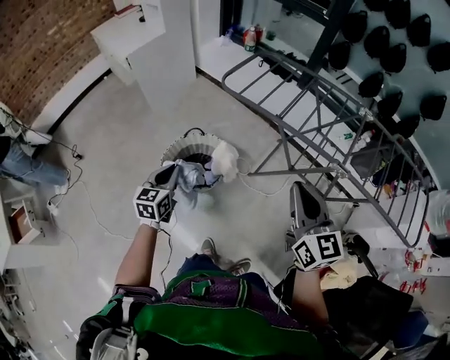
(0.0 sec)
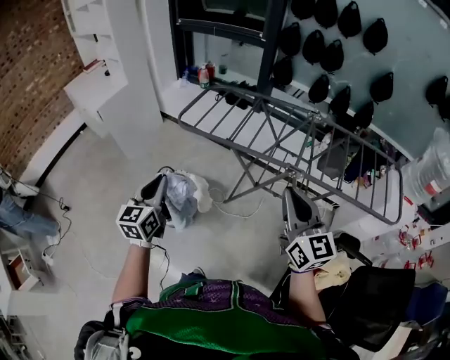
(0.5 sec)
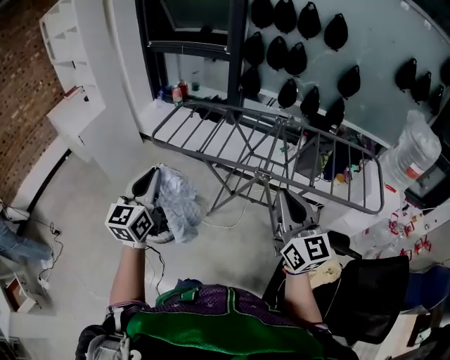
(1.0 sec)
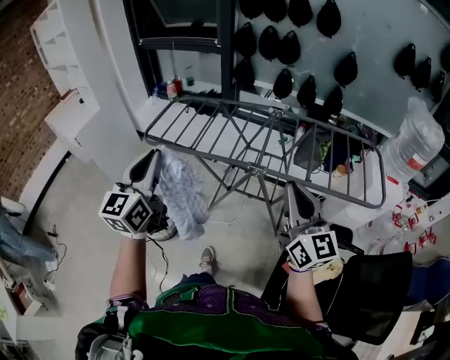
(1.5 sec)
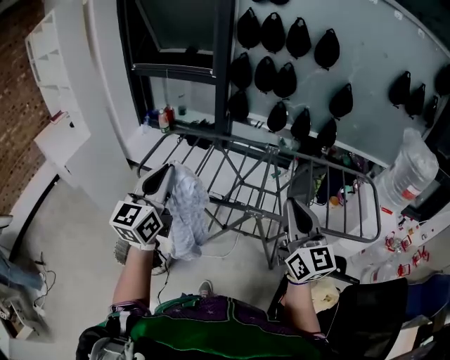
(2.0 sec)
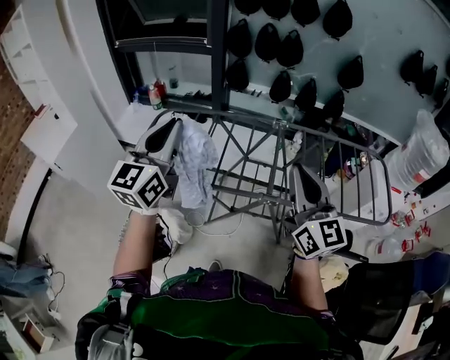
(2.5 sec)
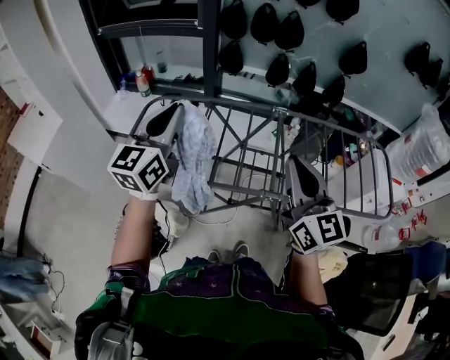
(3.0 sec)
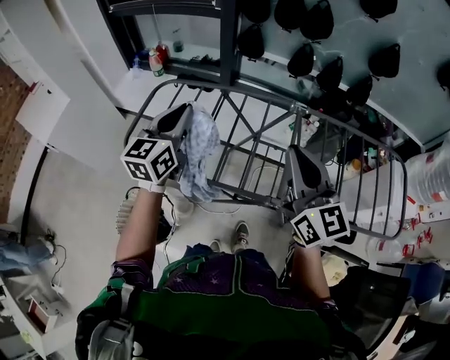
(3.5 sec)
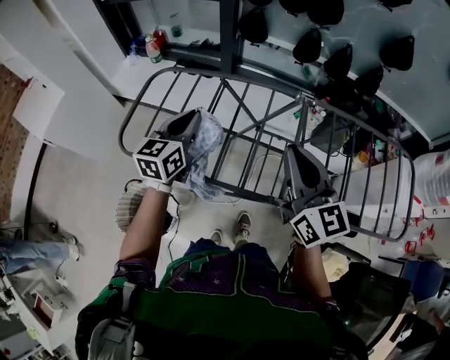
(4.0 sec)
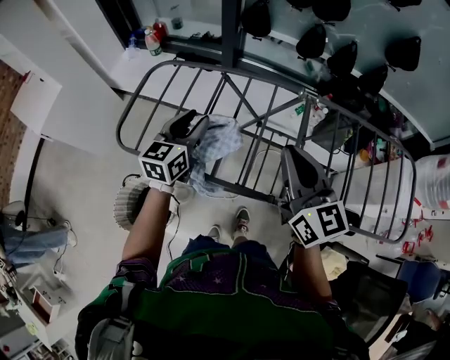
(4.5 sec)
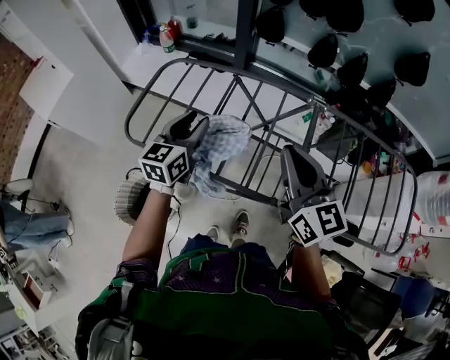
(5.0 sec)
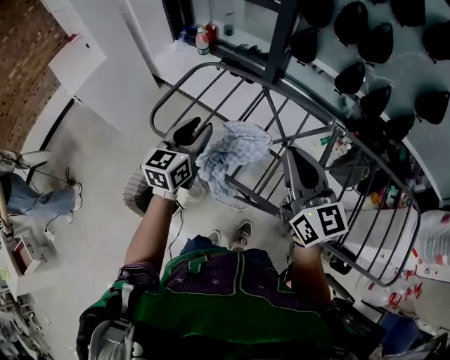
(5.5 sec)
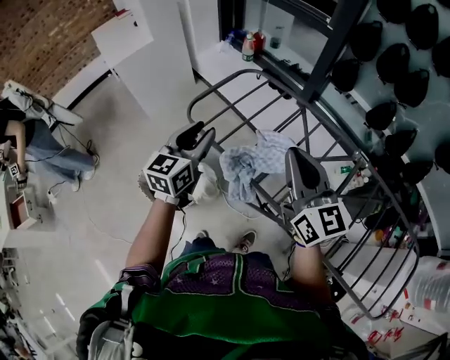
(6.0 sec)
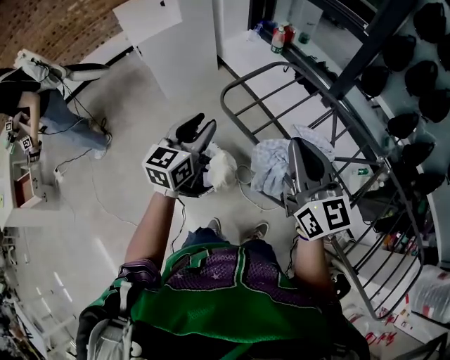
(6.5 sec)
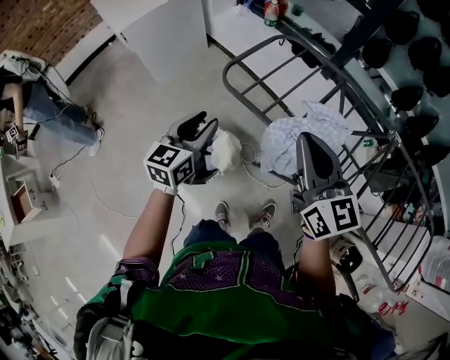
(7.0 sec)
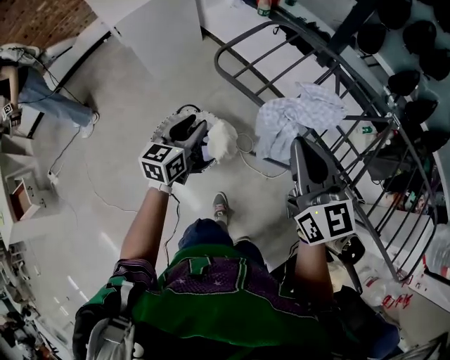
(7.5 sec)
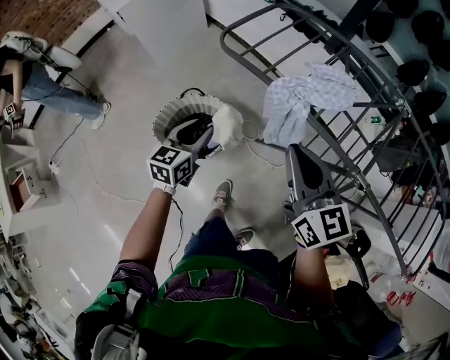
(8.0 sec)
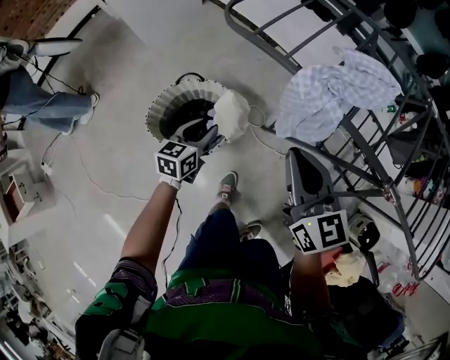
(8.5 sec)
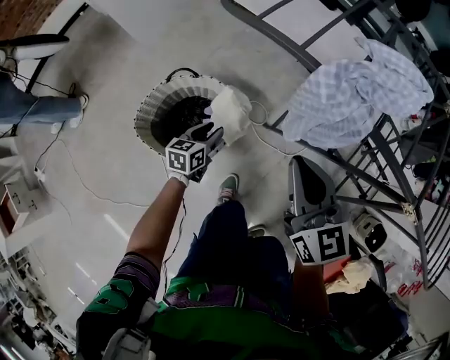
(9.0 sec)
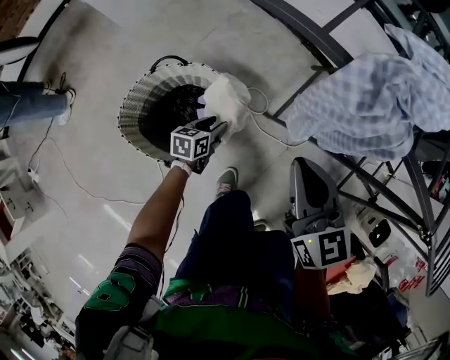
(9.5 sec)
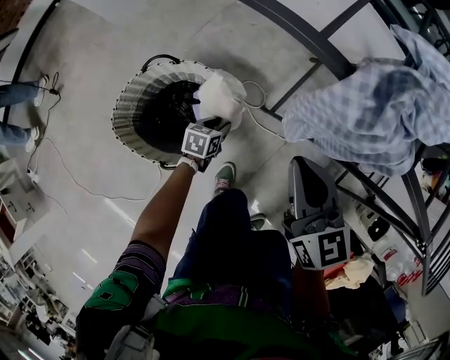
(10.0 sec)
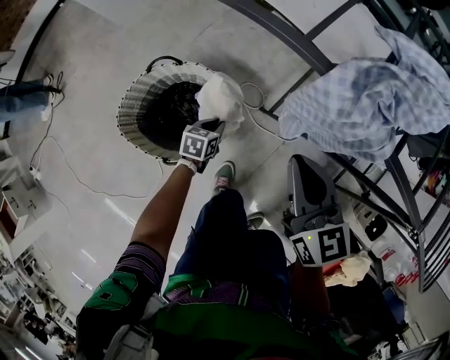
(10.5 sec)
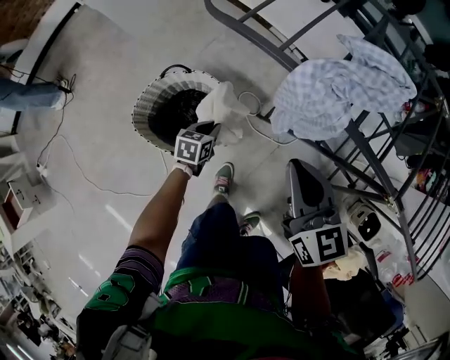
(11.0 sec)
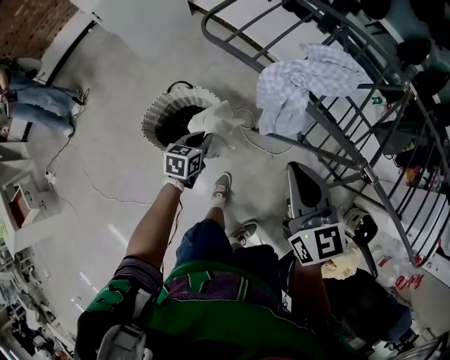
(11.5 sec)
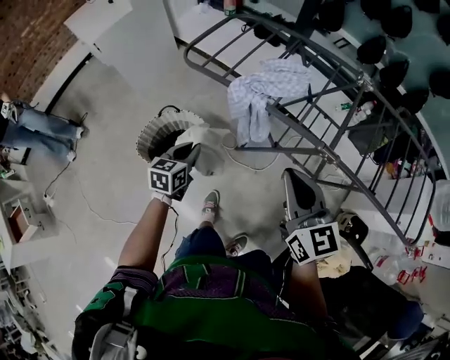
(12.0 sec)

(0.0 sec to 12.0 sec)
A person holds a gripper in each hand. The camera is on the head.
0.0 sec - 2.0 sec: The left gripper is displaced upward and to the right by approximately 50 cm, and angles its fingers upward, by some 30 degrees; the right gripper travels to the right and upward by about 30 cm, and changes its angle by some 30 degrees.
2.0 sec - 4.0 sec: The left gripper goes approximately 40 cm forward and downward, and changes its angle by some 20 degrees, while the right gripper is displaced forward by about 25 cm.
4.0 sec - 6.0 sec: The right gripper ends up some 15 cm from where it was, and turns by approximately 30 degrees, while the left gripper changes place by about 20 cm, swivels about 30 degrees, and opens its fingers.
6.0 sec - 8.0 sec: The right gripper travels to the left, downward and backward by about 25 cm; the left gripper moves downward, to the left and backward, roughly 30 cm.
8.0 sec - 10.0 sec: The left gripper shifts roughly 50 cm downward, and changes its angle by roughly 40 degrees. Meanwhile the right gripper shifts roughly 30 cm downward.
10.0 sec - 12.0 sec: The right gripper shifts approximately 40 cm upward, backward and to the right, while the left gripper goes approximately 50 cm upward, rotates some 30 degrees, and closes its fingers.

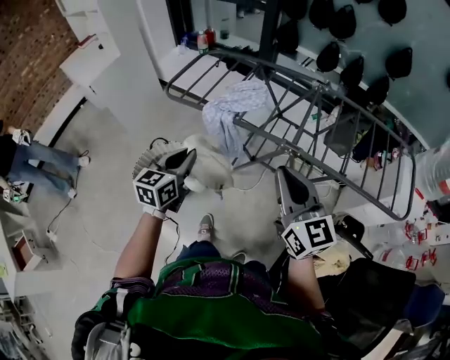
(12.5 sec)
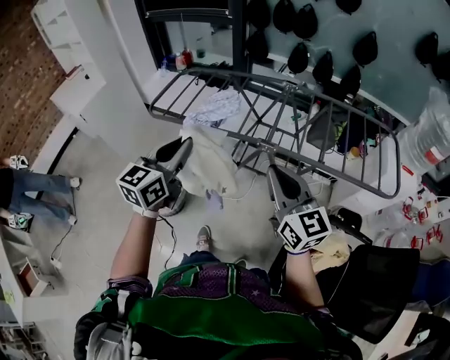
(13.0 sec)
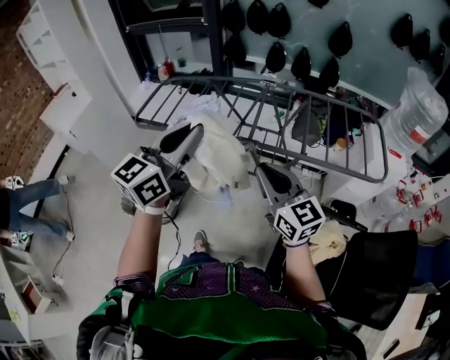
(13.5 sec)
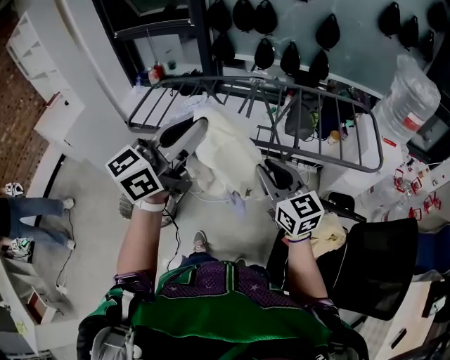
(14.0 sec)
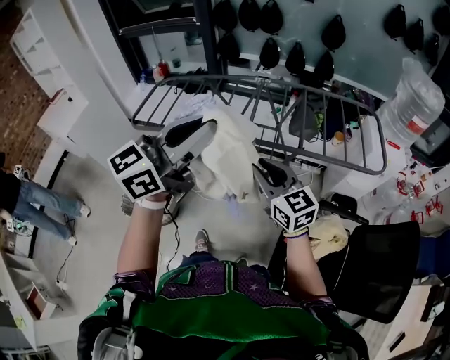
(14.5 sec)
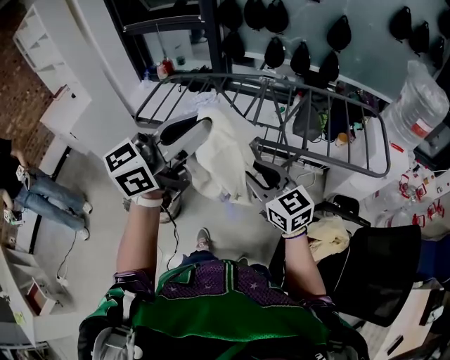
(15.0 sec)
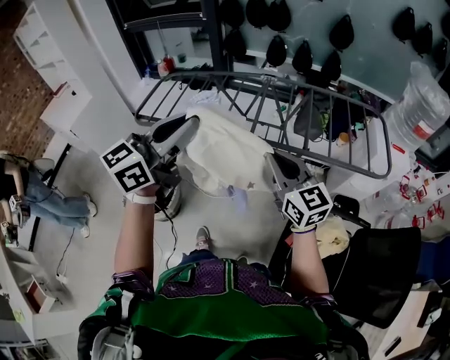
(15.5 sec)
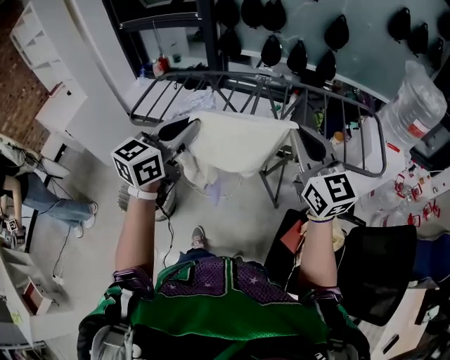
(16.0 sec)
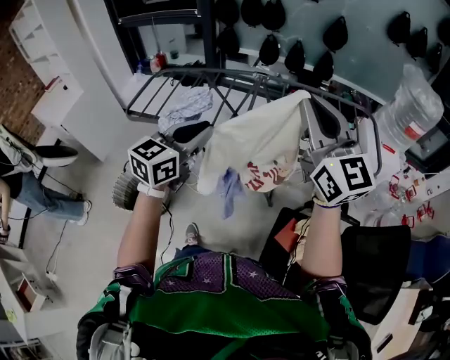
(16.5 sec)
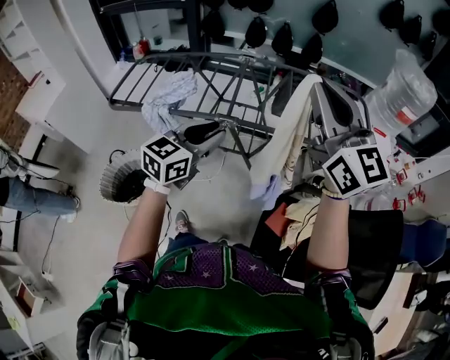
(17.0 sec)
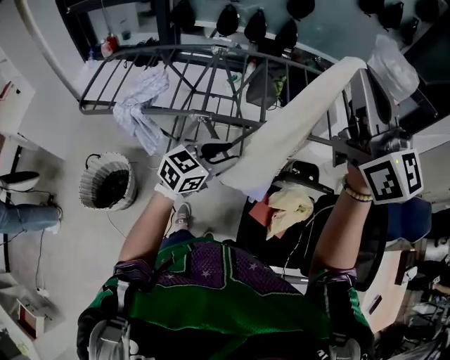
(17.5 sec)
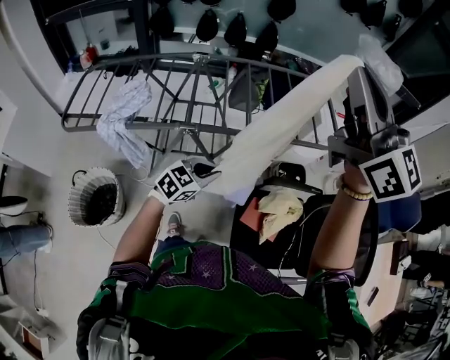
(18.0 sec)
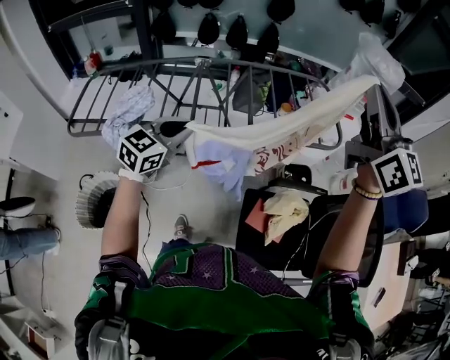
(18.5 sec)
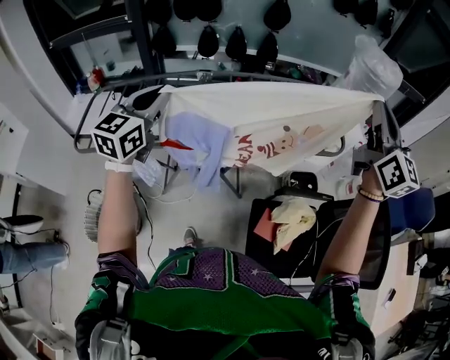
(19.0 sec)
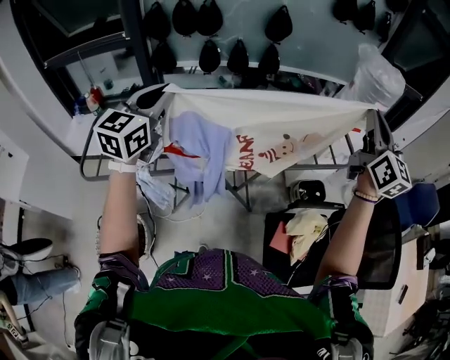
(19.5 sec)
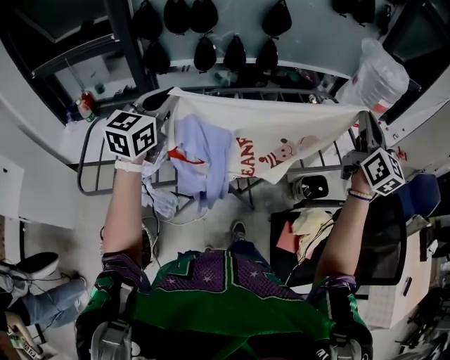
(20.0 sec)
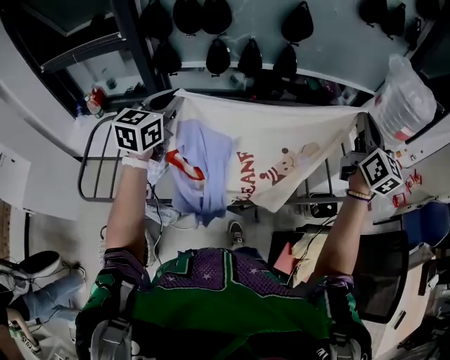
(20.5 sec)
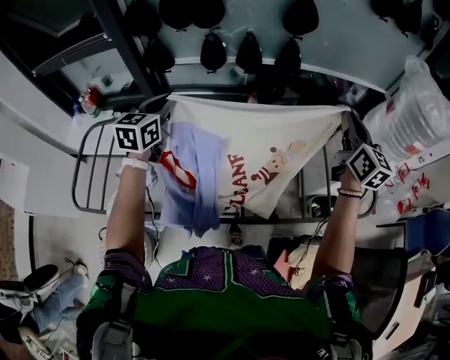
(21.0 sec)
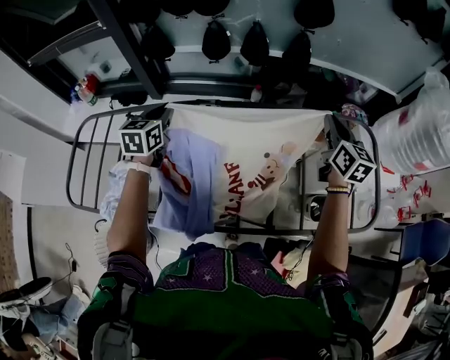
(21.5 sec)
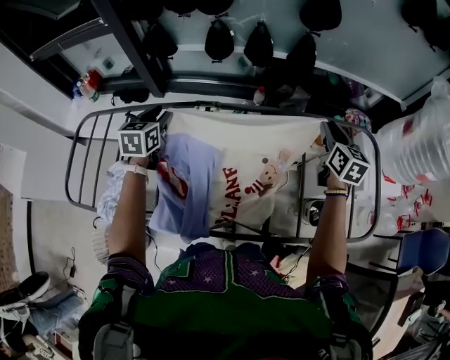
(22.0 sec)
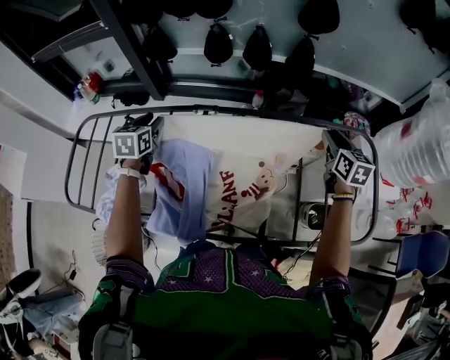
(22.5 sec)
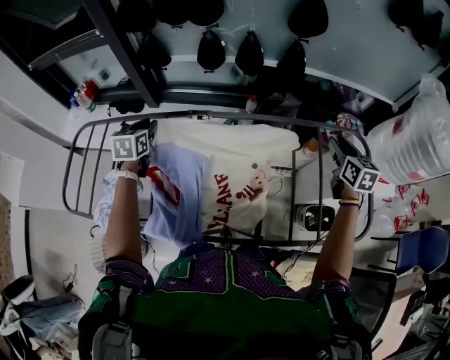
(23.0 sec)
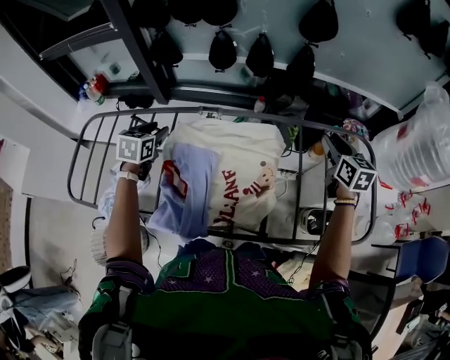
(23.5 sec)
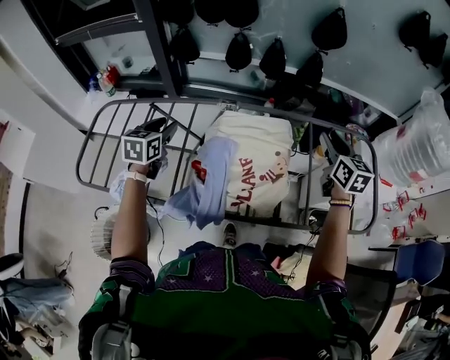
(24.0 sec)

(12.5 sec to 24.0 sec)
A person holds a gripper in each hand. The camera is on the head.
12.5 sec - 14.5 sec: The right gripper heads to the right, covering some 10 cm. The left gripper travels upward and to the right by roughly 35 cm, and swivels some 50 degrees.
14.5 sec - 16.5 sec: The right gripper shifts roughly 20 cm upward, and swivels some 30 degrees. The left gripper goes roughly 15 cm downward and forward, and changes its angle by about 20 degrees.
16.5 sec - 18.5 sec: The right gripper travels to the right and upward by about 20 cm, and swivels approximately 20 degrees. Meanwhile the left gripper goes approximately 15 cm forward and downward, swivels some 20 degrees, and opens, then closes once more.
18.5 sec - 20.0 sec: The left gripper travels to the left, upward and forward by some 25 cm. The right gripper heads downward and forward, covering some 15 cm, and swivels approximately 20 degrees.
20.0 sec - 22.0 sec: The left gripper travels downward and forward by approximately 25 cm, changes its angle by about 40 degrees, and opens up, while the right gripper is displaced forward and downward by roughly 40 cm, rotates approximately 30 degrees, and opens up.
22.0 sec - 24.0 sec: Both grippers move backward and to the left, about 10 cm.

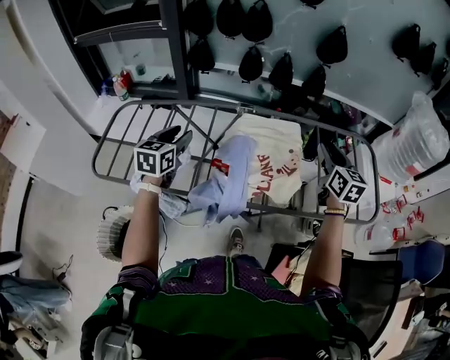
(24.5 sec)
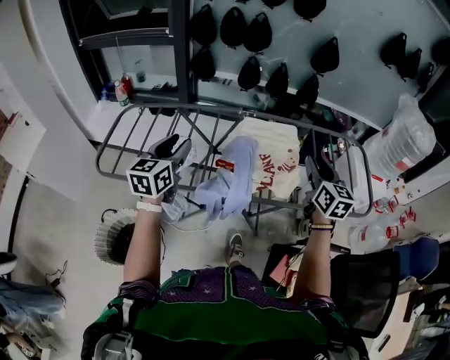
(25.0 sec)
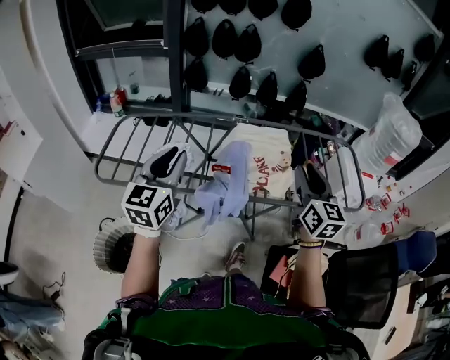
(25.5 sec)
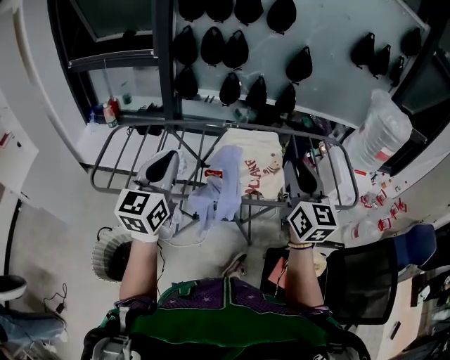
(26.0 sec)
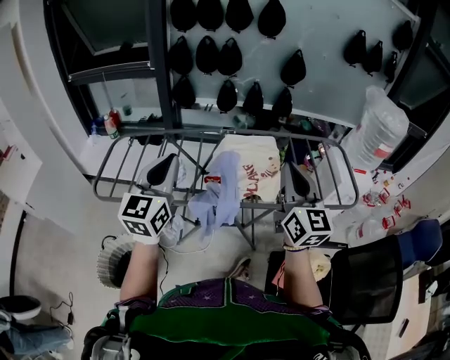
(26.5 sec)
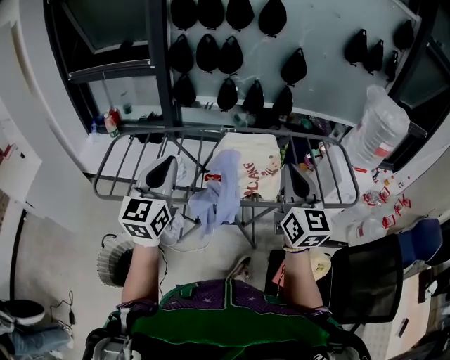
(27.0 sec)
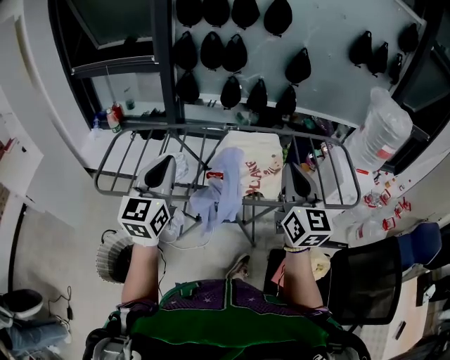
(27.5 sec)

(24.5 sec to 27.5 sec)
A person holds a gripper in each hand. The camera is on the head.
24.5 sec - 26.0 sec: The left gripper is displaced backward and upward by some 25 cm, swivels some 30 degrees, and closes up. Meanwhile the right gripper goes roughly 30 cm backward, to the left and upward, and rotates some 20 degrees.
26.0 sec - 27.5 sec: The right gripper closes.
